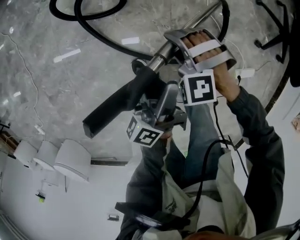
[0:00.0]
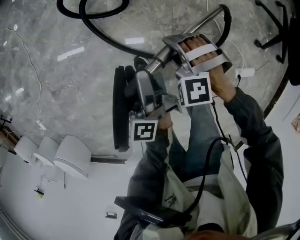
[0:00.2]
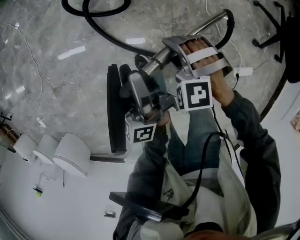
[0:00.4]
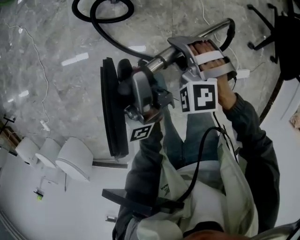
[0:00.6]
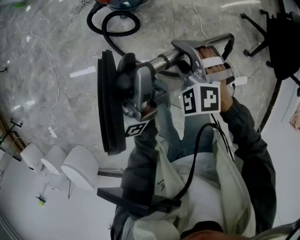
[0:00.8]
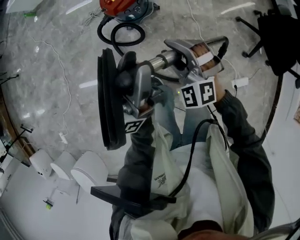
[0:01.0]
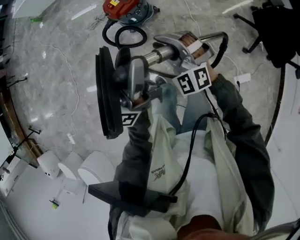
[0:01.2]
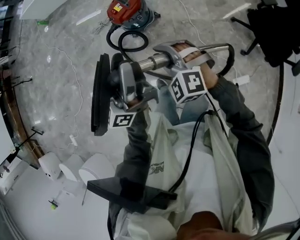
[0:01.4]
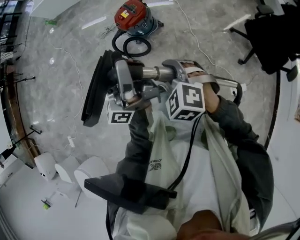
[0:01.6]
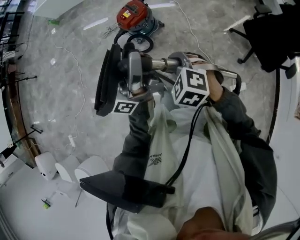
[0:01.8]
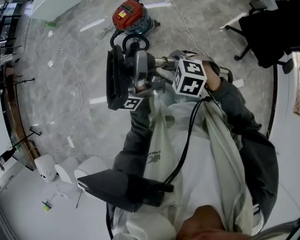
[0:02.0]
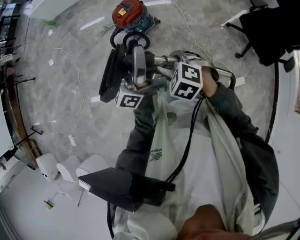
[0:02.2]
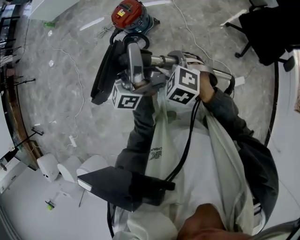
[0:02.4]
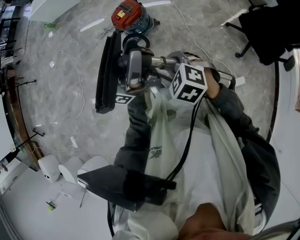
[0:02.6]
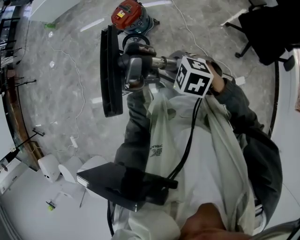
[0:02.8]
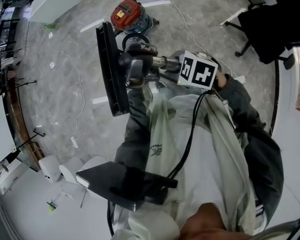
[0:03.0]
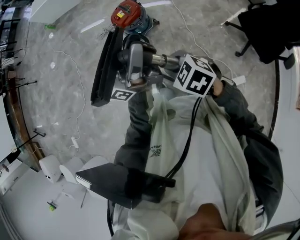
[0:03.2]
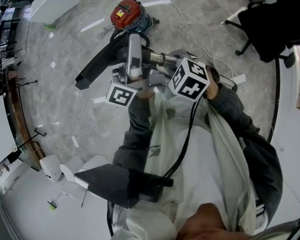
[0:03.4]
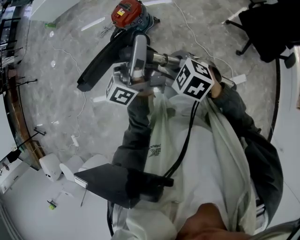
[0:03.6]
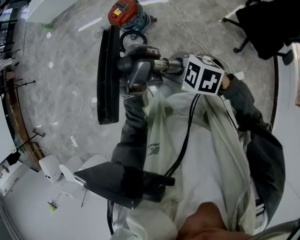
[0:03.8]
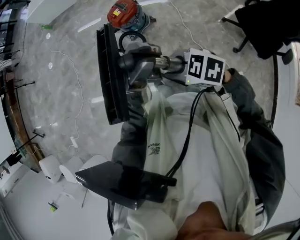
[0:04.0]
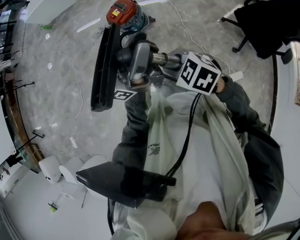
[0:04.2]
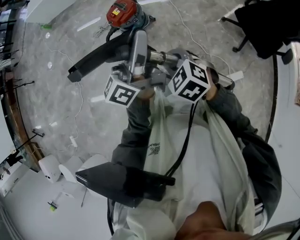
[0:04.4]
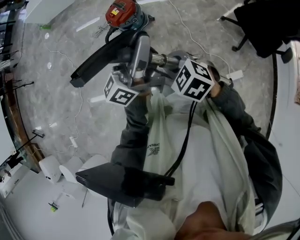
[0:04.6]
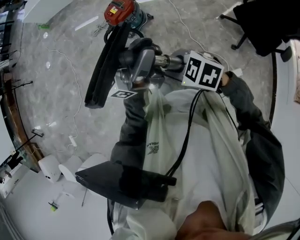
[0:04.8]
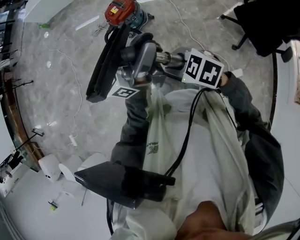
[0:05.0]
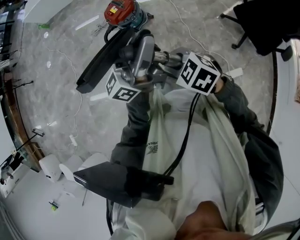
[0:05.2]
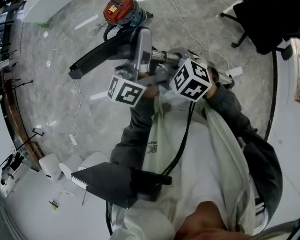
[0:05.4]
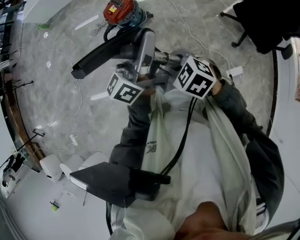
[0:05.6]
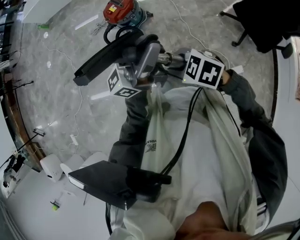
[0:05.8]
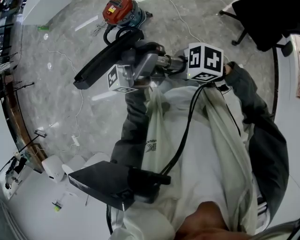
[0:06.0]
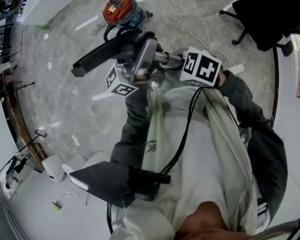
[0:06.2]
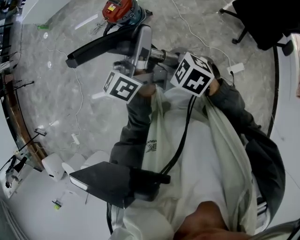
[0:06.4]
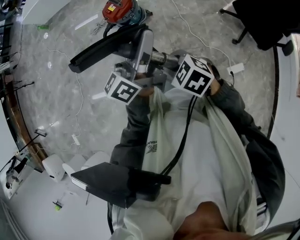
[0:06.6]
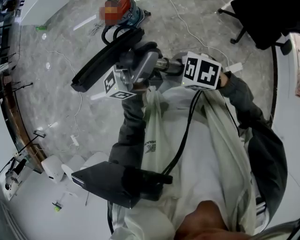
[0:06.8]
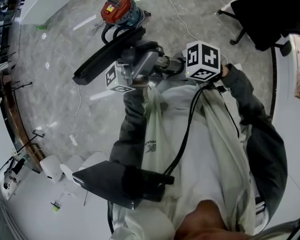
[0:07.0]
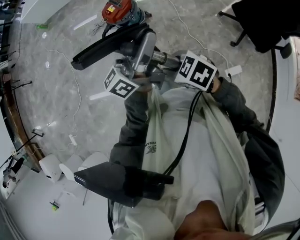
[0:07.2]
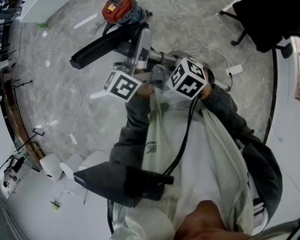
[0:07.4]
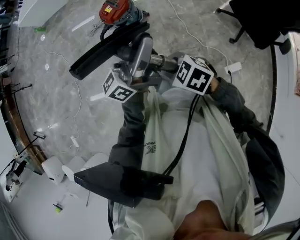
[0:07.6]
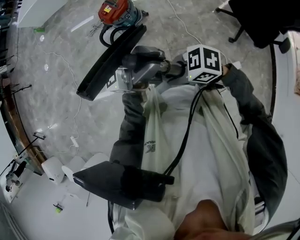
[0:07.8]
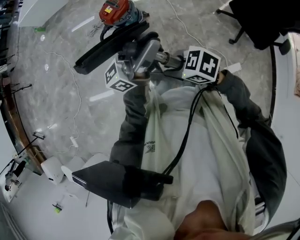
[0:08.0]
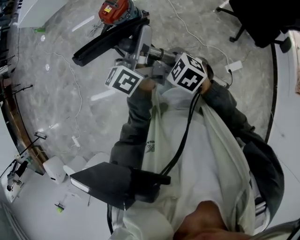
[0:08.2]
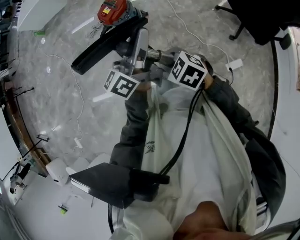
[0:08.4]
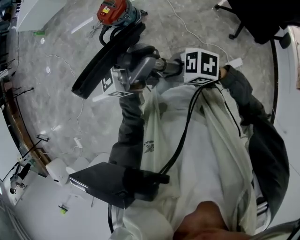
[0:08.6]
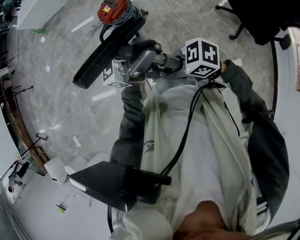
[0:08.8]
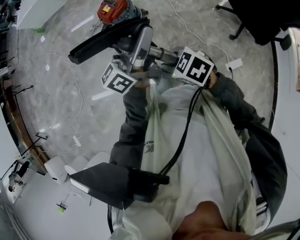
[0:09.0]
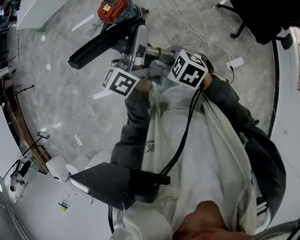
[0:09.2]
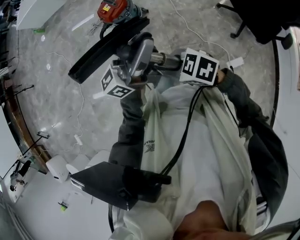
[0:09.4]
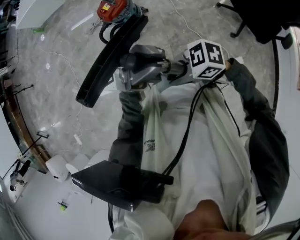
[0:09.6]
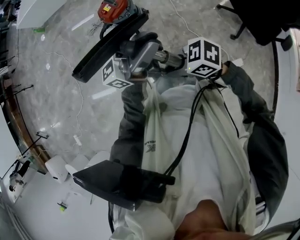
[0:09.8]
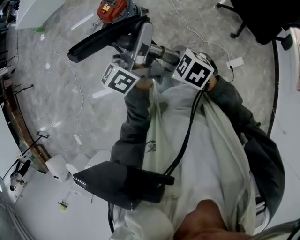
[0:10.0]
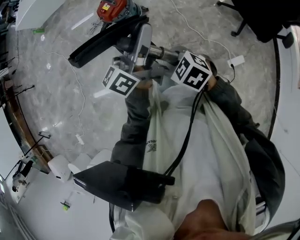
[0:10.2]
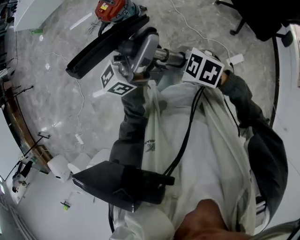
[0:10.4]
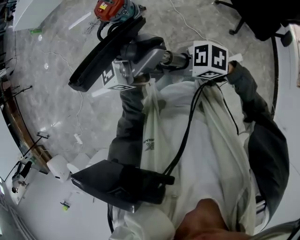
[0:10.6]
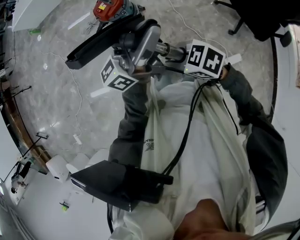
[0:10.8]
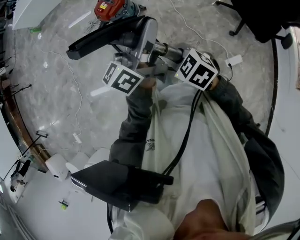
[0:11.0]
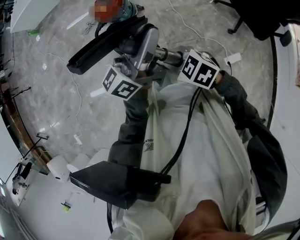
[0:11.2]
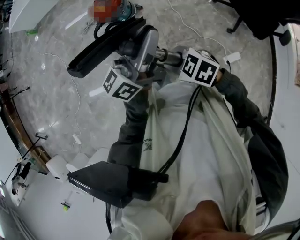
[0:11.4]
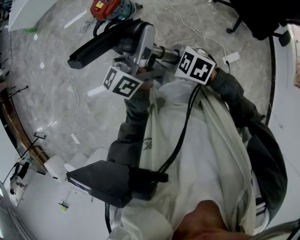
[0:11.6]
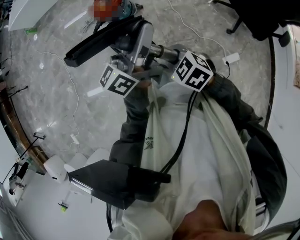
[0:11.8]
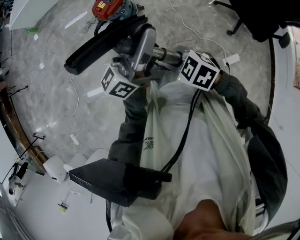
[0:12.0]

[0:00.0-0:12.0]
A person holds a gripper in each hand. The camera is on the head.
0:00.0 to 0:01.6: Both grippers travel together upward, approximately 50 cm. The right gripper swivels some 30 degrees, while the left gripper angles its fingers upward, by some 50 degrees, and closes.
0:01.6 to 0:03.0: The left gripper is displaced to the right and upward by approximately 10 cm; the right gripper moves backward, approximately 10 cm, and swivels some 30 degrees.
0:03.0 to 0:04.4: The right gripper turns by about 30 degrees. The left gripper swivels about 30 degrees.
0:04.4 to 0:06.0: The left gripper moves some 10 cm, and changes its angle by about 40 degrees. Meanwhile the right gripper ends up some 5 cm from where it was, and swivels roughly 40 degrees.
0:06.0 to 0:07.6: The right gripper turns by approximately 20 degrees; the left gripper moves up and down over some 5 cm, changing direction 2 times, and rotates roughly 30 degrees.
0:07.6 to 0:09.0: The left gripper goes up and down, some 5 cm each way, reversing 2 times.
0:09.0 to 0:10.4: The left gripper moves about 5 cm upward and comes back.

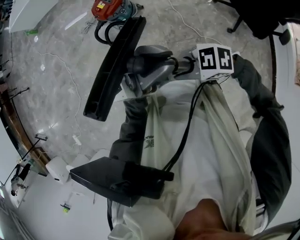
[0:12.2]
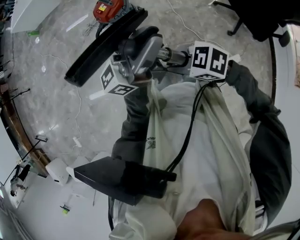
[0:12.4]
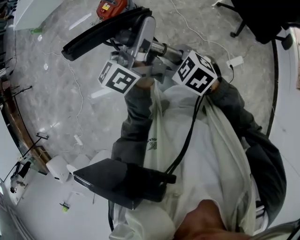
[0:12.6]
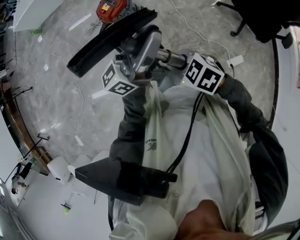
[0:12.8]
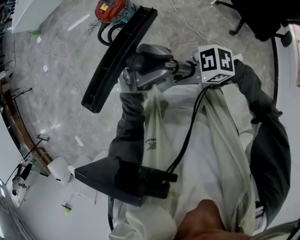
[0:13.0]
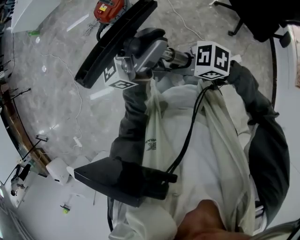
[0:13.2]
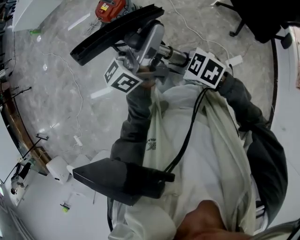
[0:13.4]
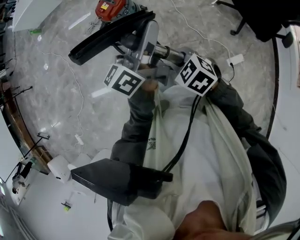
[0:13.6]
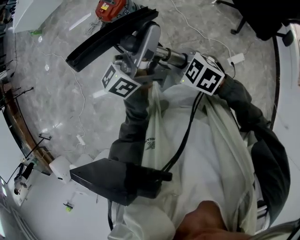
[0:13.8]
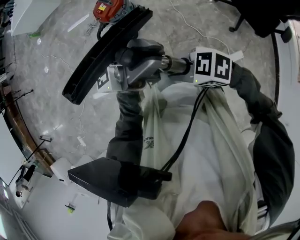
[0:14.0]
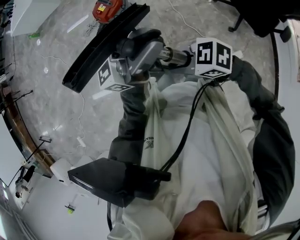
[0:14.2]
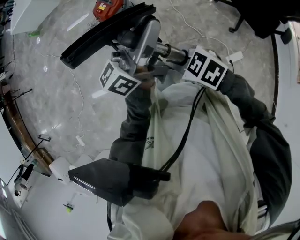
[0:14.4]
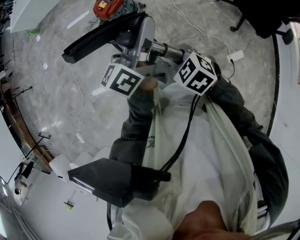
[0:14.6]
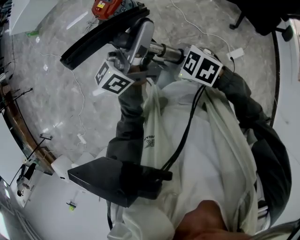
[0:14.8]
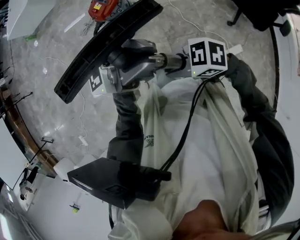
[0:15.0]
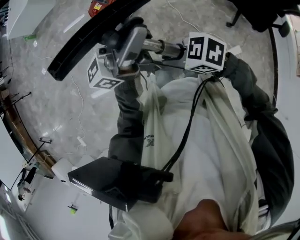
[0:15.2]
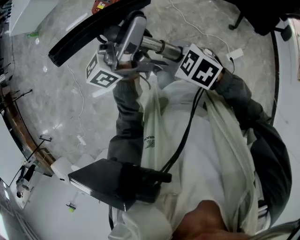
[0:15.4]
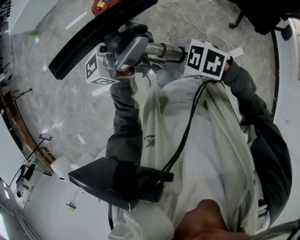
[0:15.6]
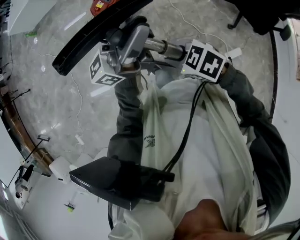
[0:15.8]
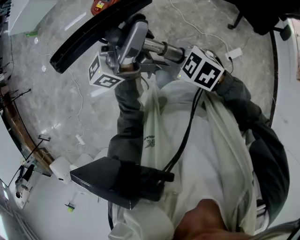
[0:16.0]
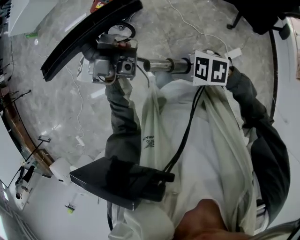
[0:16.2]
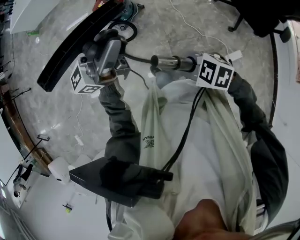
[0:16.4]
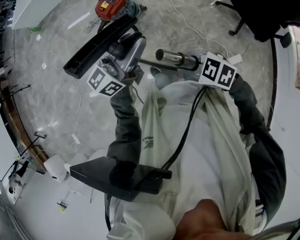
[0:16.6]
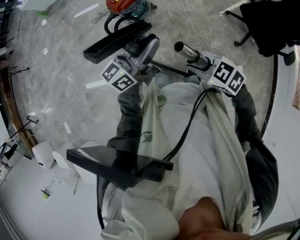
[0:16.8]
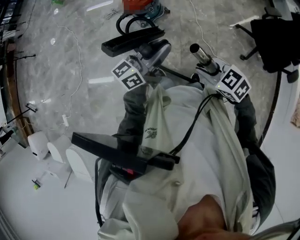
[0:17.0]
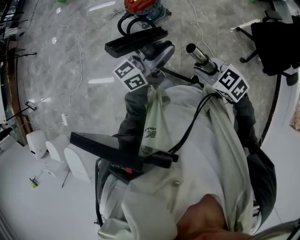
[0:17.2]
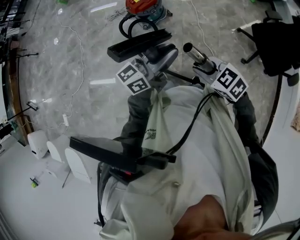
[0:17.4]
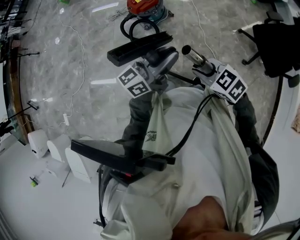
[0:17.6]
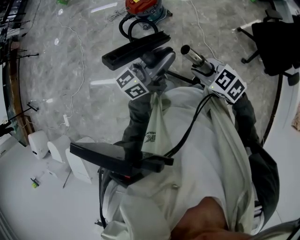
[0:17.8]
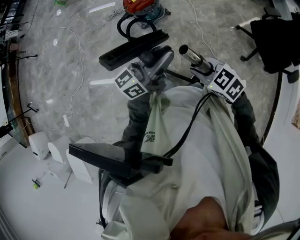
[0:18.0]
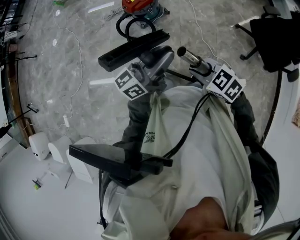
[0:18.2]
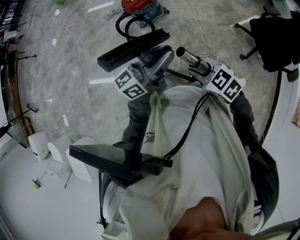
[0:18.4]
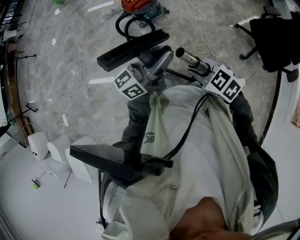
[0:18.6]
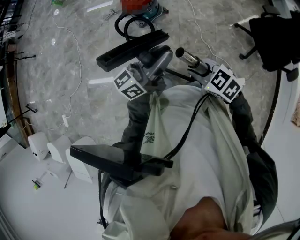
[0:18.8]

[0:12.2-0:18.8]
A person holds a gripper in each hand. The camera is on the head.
0:12.2 to 0:13.8: The left gripper moves up and down over roughly 10 cm, changing direction 2 times, and turns by some 30 degrees. The right gripper ends up some 5 cm from where it was, and rotates approximately 40 degrees.
0:13.8 to 0:15.4: The left gripper swings up and down, approximately 10 cm each way, with 2 reversals. Meanwhile the right gripper swings up and down, approximately 5 cm each way, with 2 reversals.
0:15.4 to 0:17.2: The left gripper travels downward by roughly 10 cm, and rotates some 20 degrees, while the right gripper changes place by approximately 5 cm.
0:17.2 to 0:18.8: The grippers make only small movements.

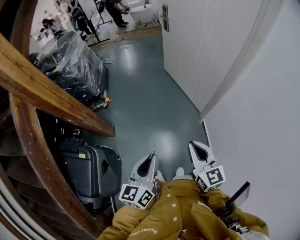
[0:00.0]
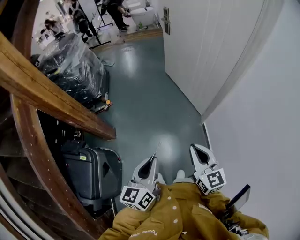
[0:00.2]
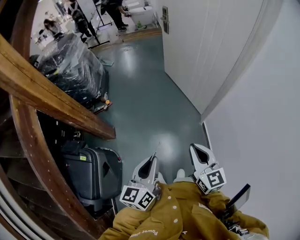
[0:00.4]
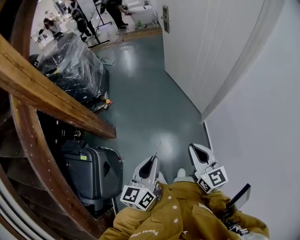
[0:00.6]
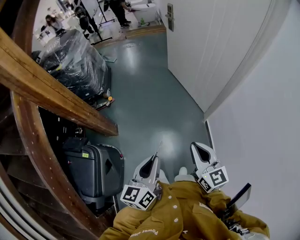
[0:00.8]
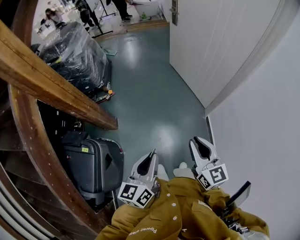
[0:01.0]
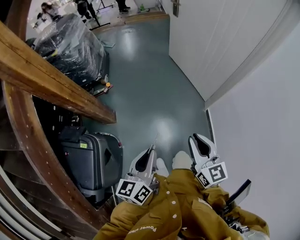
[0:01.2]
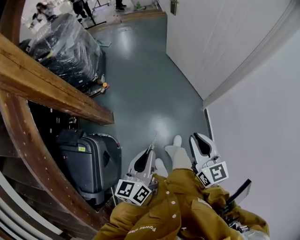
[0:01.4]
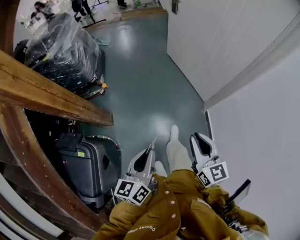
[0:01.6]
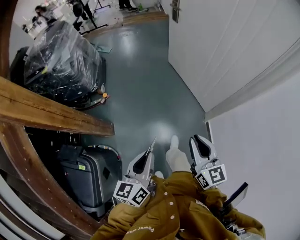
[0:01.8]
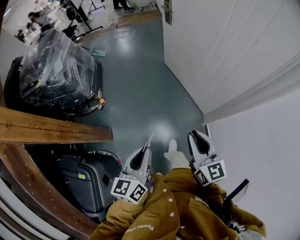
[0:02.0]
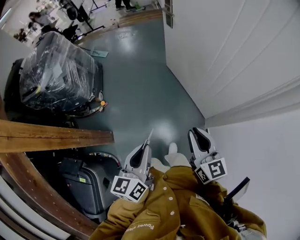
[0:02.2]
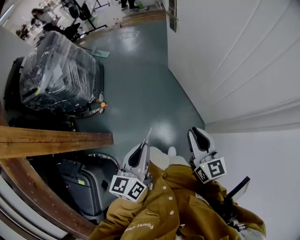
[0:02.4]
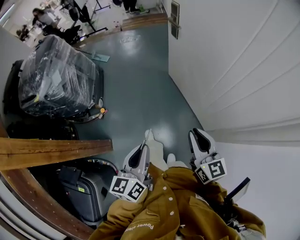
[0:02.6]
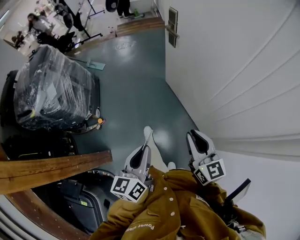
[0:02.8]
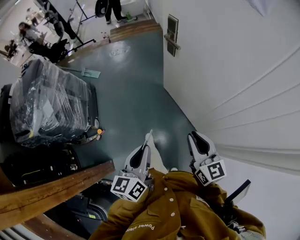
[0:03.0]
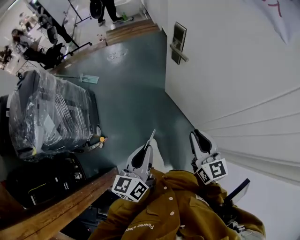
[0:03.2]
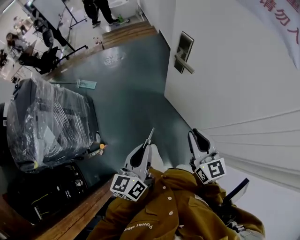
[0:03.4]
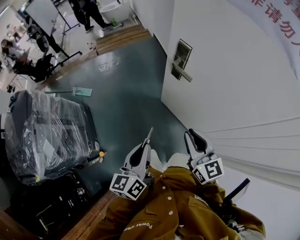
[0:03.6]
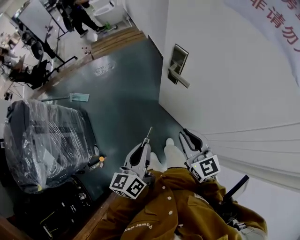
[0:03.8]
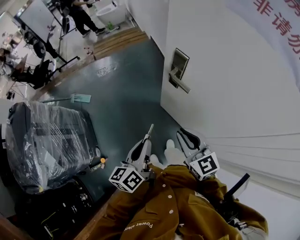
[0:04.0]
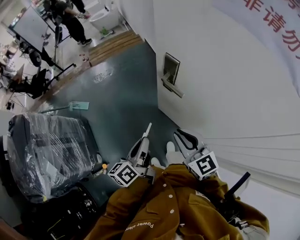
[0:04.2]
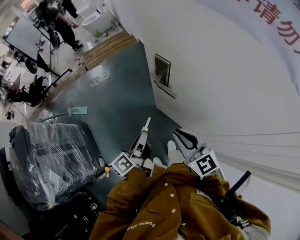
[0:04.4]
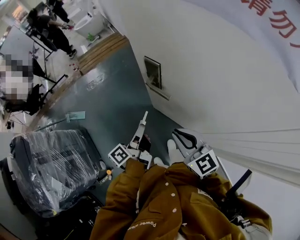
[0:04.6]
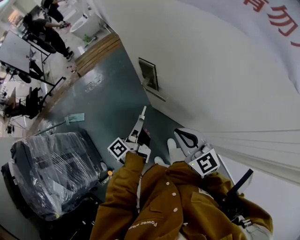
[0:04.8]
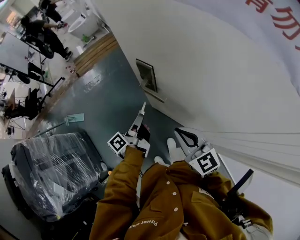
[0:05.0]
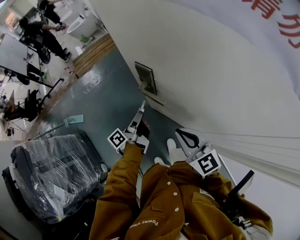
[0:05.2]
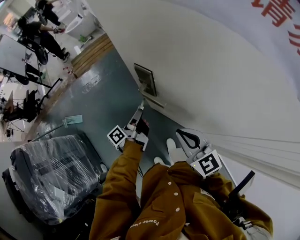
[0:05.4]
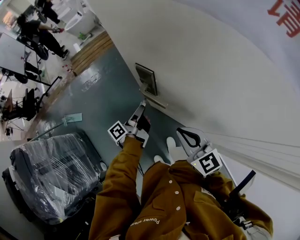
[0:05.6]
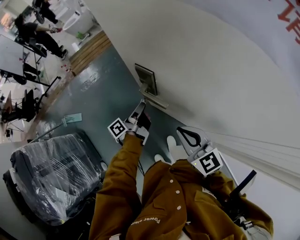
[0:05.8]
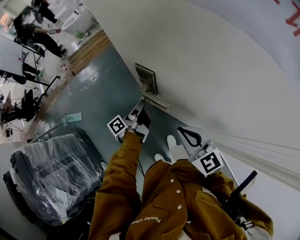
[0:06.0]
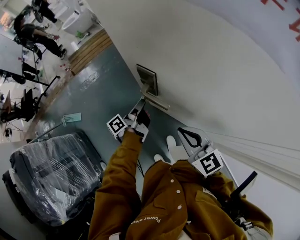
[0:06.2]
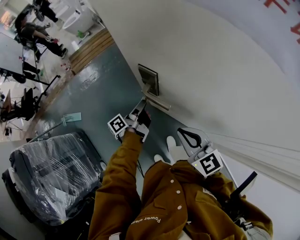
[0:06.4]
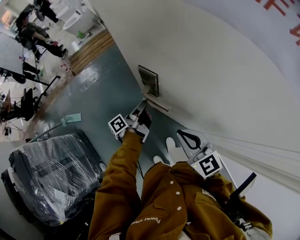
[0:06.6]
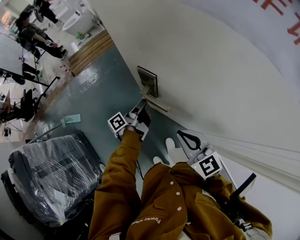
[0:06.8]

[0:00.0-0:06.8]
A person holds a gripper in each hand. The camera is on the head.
0:00.0 to 0:01.4: The grippers both shift to the left by some 5 cm.
0:01.4 to 0:02.8: Both grippers are carried forward, about 50 cm.
0:02.8 to 0:04.0: Both grippers travel together forward, some 35 cm.
0:04.0 to 0:05.4: The left gripper travels forward, downward and to the right by approximately 30 cm, and rotates around the line of its fingers by roughly 40 degrees, counterclockwise from behind, while the right gripper shifts some 10 cm to the right and forward.
0:05.4 to 0:06.8: The left gripper goes approximately 5 cm forward.
